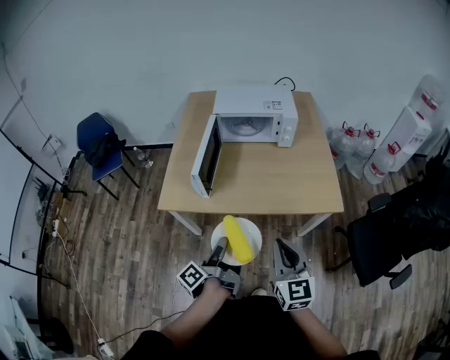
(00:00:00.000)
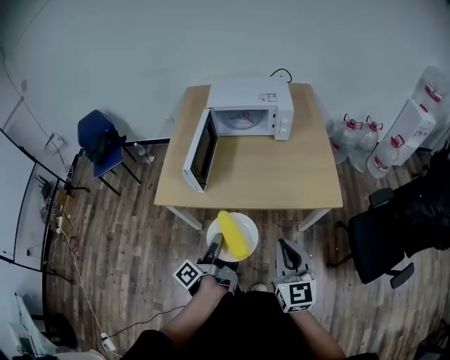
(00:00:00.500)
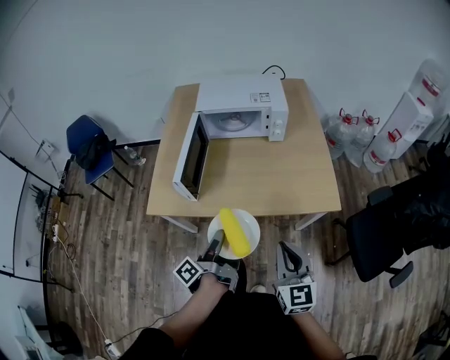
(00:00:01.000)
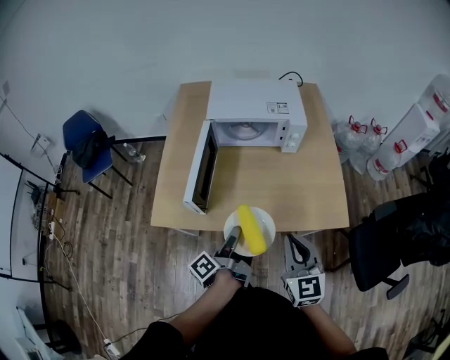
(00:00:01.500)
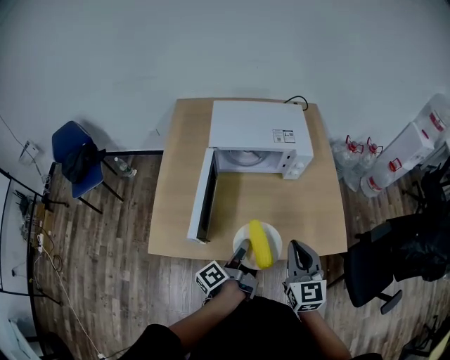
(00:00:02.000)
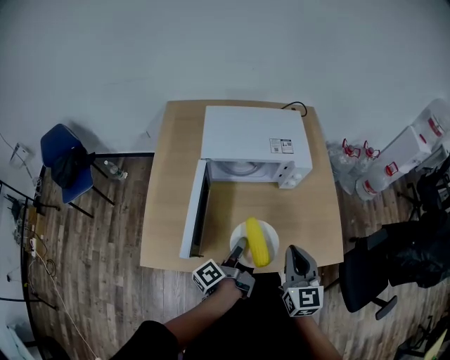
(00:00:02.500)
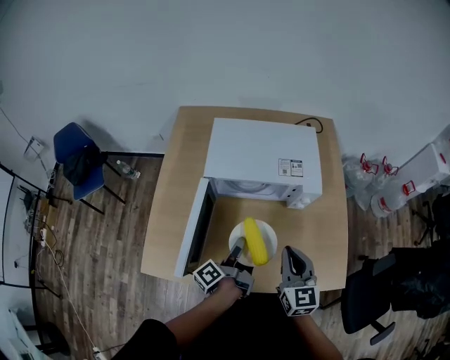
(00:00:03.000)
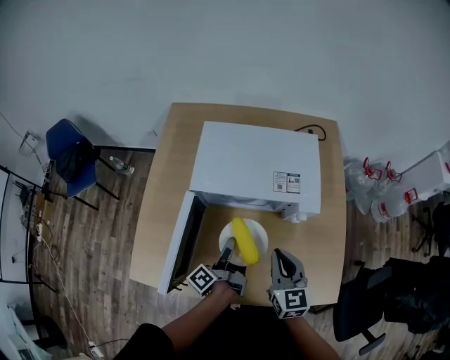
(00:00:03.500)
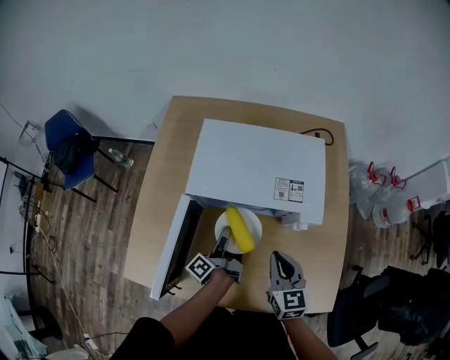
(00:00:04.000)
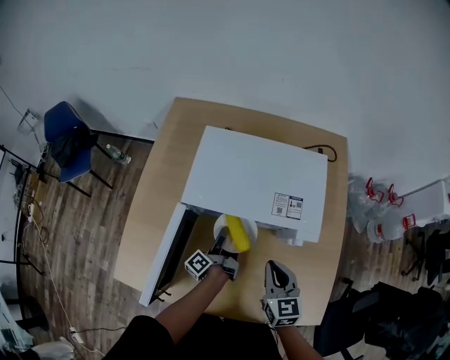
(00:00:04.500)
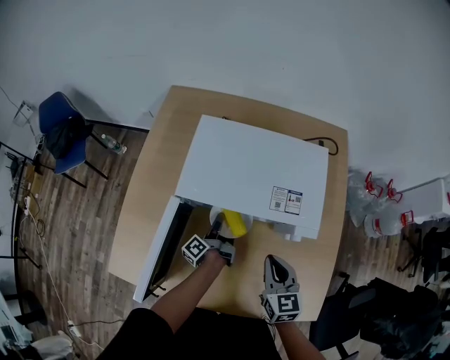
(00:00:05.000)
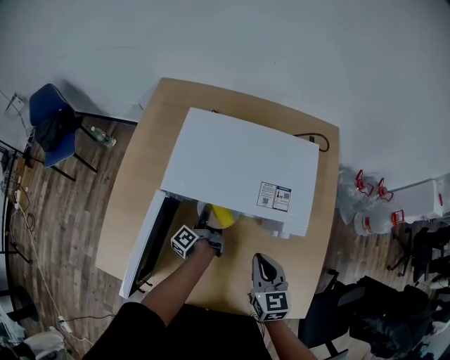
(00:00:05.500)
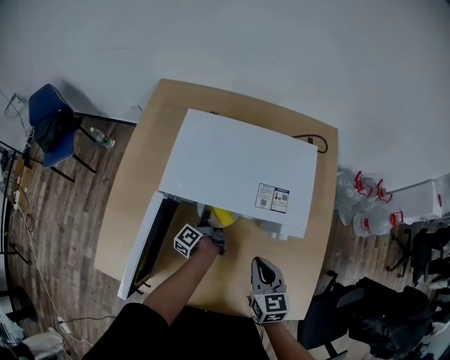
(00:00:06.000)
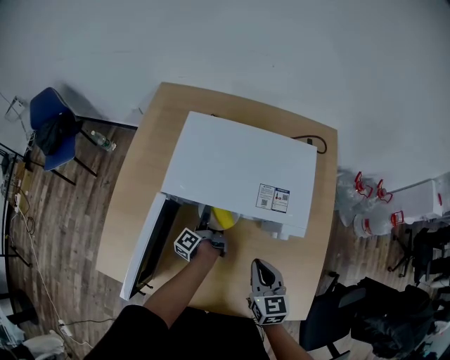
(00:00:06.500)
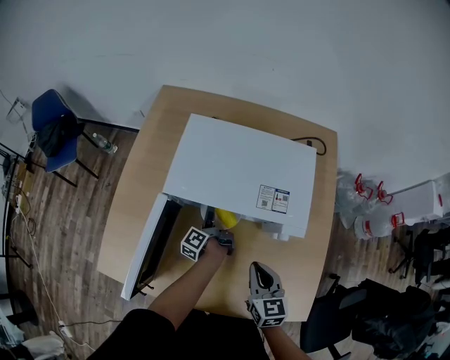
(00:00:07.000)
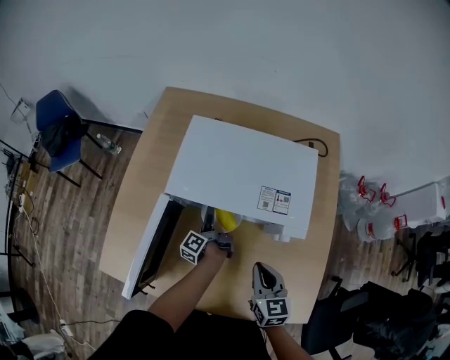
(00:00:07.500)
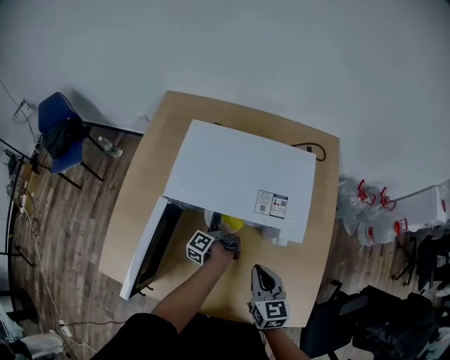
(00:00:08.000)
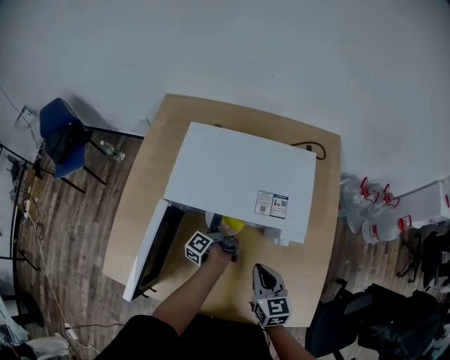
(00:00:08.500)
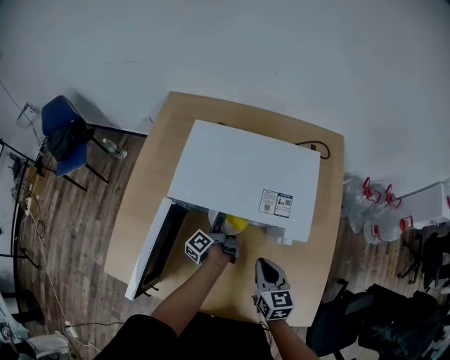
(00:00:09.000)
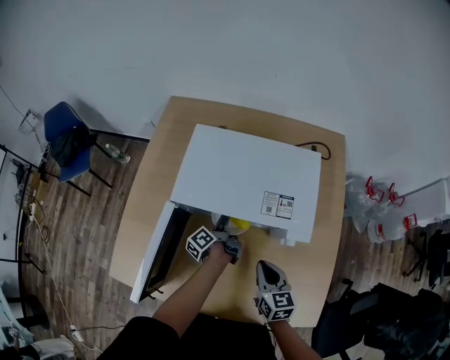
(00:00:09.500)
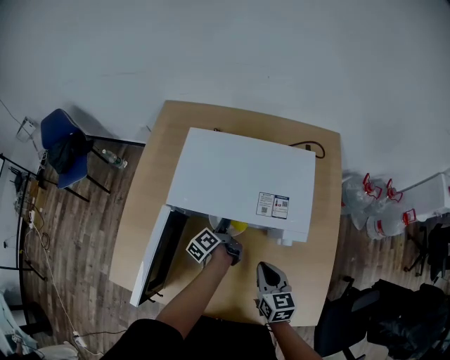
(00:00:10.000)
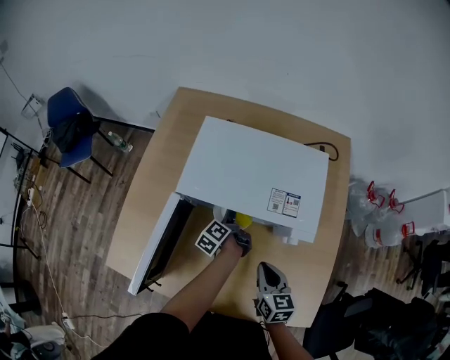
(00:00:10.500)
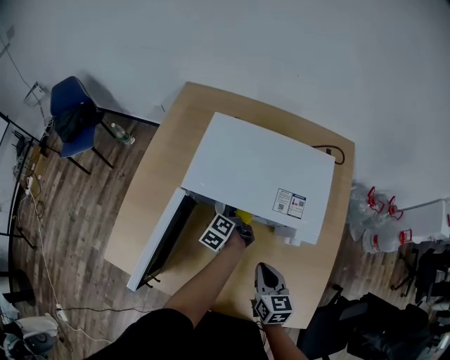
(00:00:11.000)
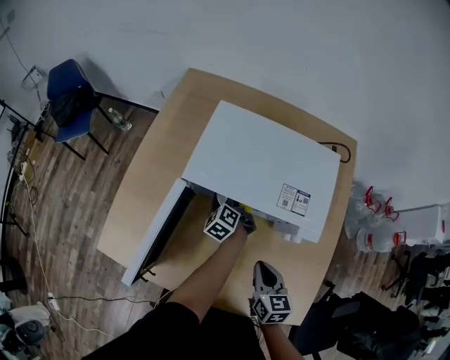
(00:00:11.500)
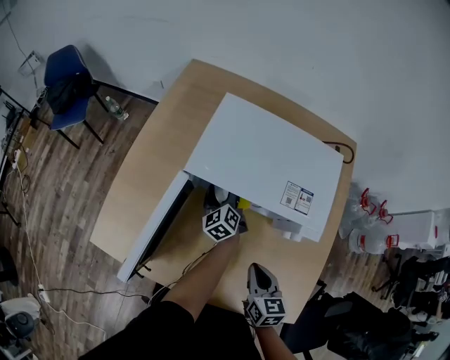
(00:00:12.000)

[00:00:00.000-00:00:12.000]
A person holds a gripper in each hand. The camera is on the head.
00:00:00.000 to 00:00:02.000: The right gripper ends up about 25 cm from where it was.
00:00:02.000 to 00:00:04.000: The right gripper ends up some 25 cm from where it was.
00:00:04.000 to 00:00:06.000: The right gripper shifts by roughly 5 cm.

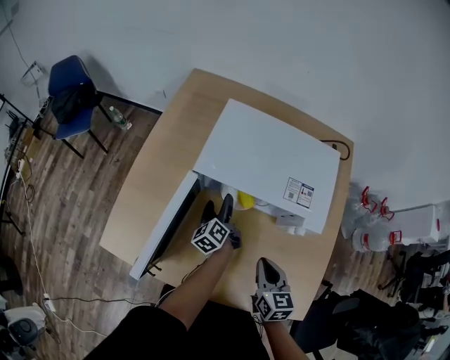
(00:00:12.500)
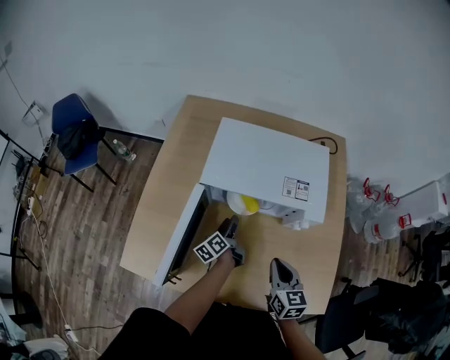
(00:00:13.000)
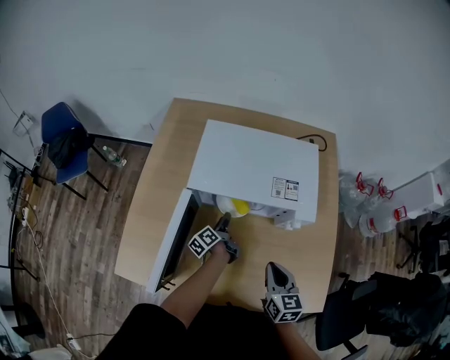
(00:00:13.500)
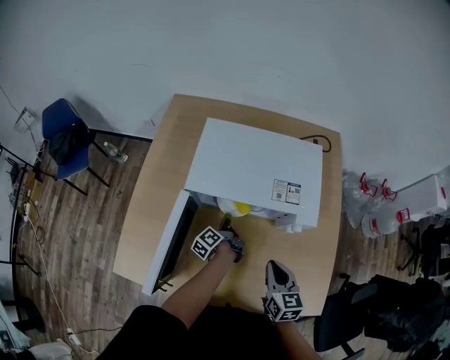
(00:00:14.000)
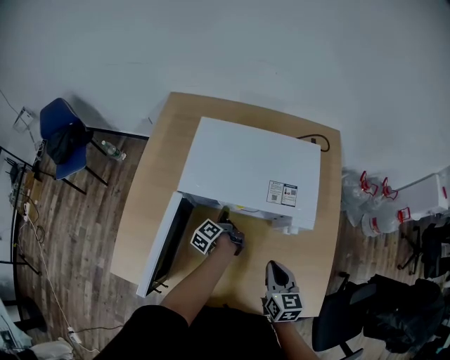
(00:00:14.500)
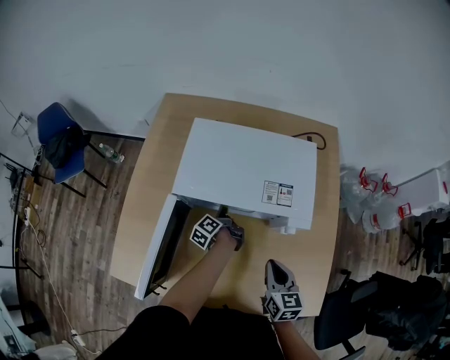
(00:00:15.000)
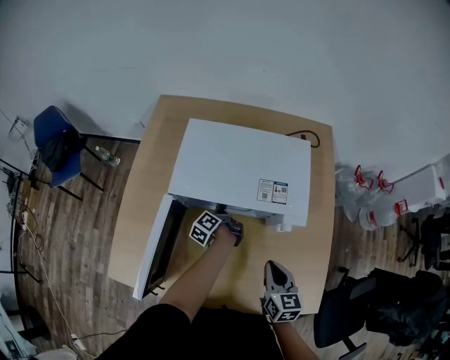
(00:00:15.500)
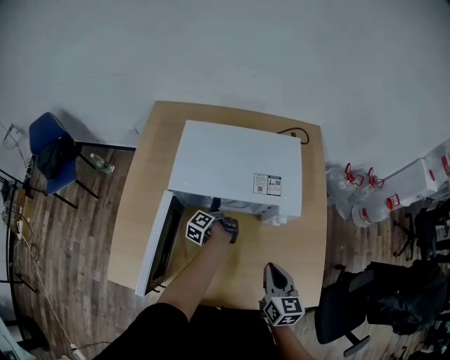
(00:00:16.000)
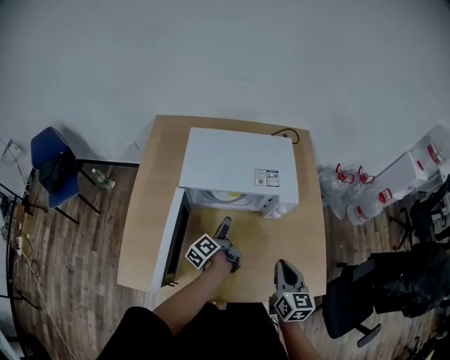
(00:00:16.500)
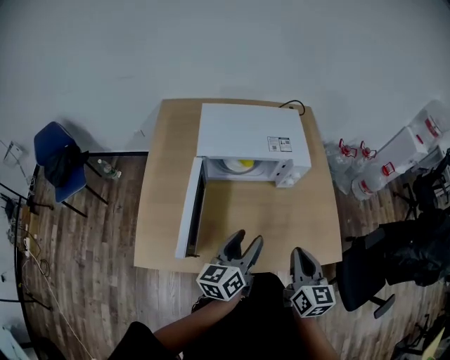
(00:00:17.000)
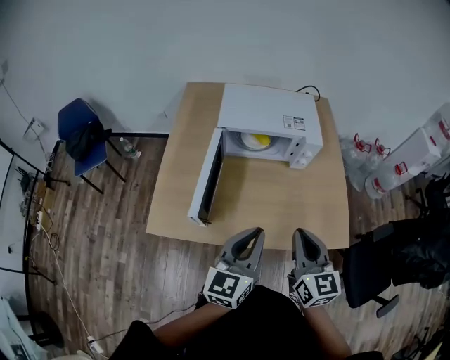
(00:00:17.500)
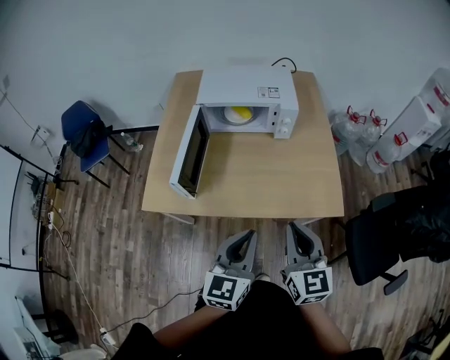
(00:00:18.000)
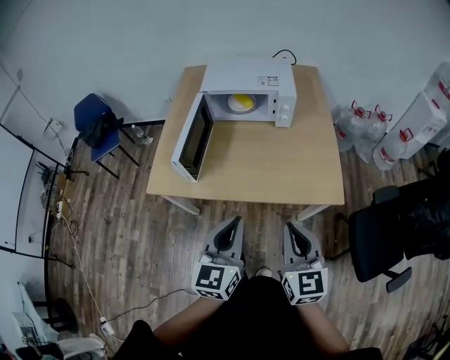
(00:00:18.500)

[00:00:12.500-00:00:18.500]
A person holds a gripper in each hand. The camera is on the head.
00:00:14.500 to 00:00:16.500: The right gripper ends up some 10 cm from where it was.
00:00:16.500 to 00:00:18.500: The right gripper moves about 35 cm.

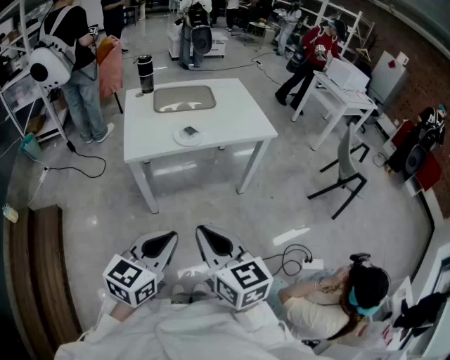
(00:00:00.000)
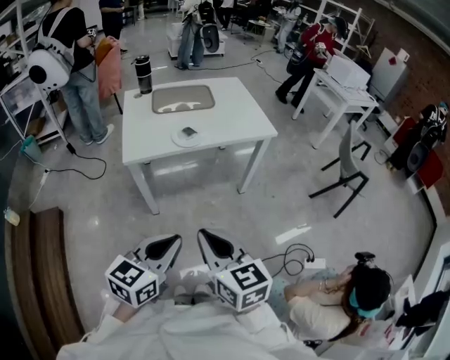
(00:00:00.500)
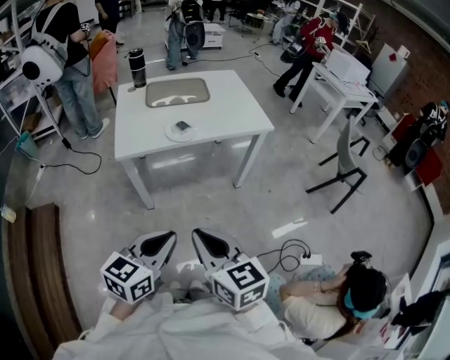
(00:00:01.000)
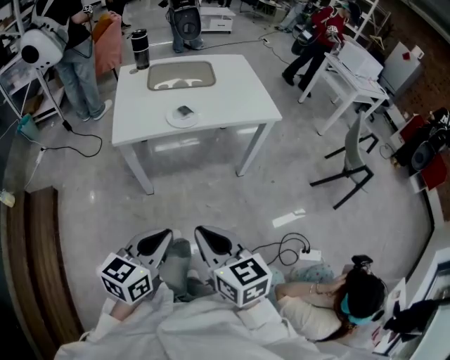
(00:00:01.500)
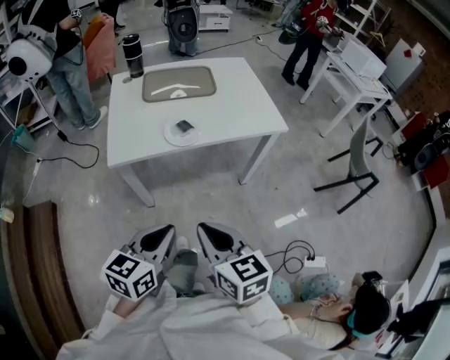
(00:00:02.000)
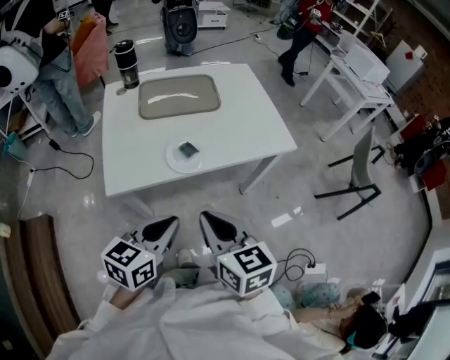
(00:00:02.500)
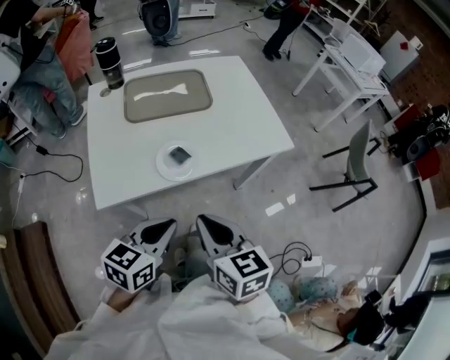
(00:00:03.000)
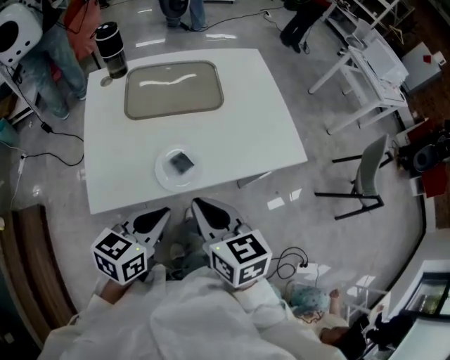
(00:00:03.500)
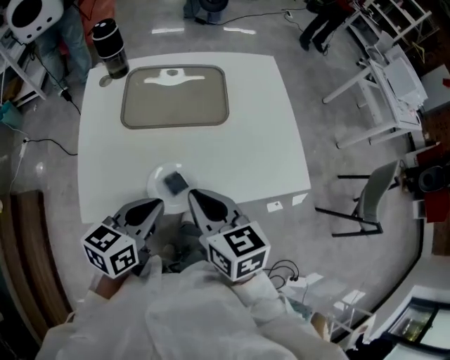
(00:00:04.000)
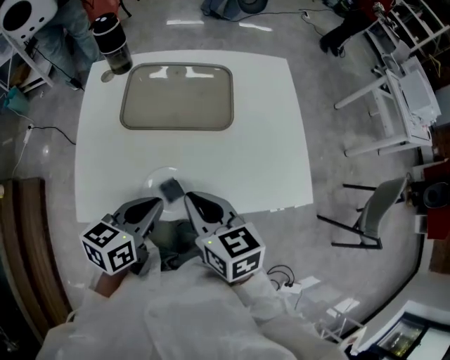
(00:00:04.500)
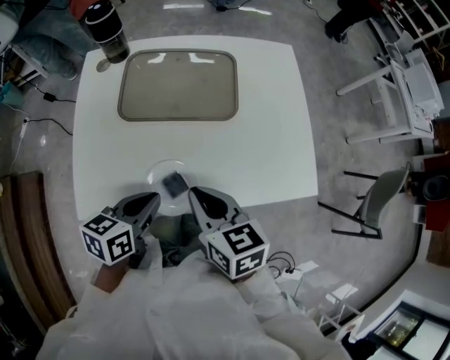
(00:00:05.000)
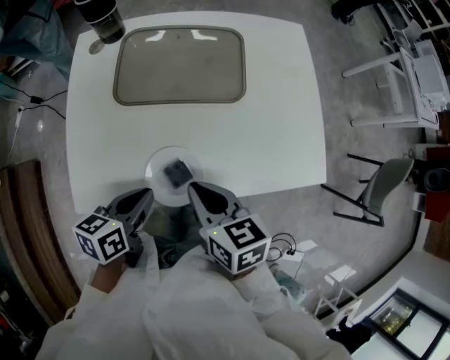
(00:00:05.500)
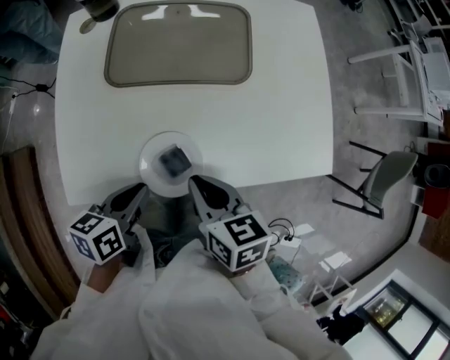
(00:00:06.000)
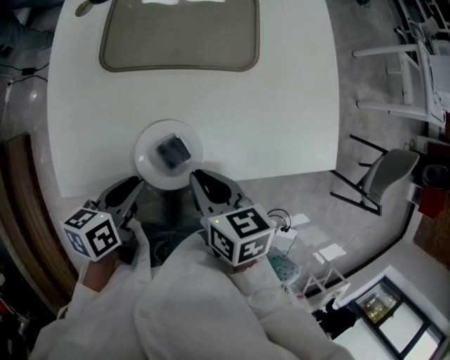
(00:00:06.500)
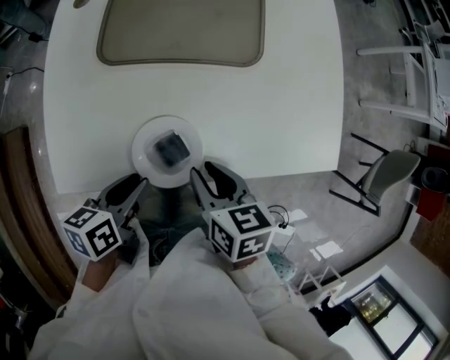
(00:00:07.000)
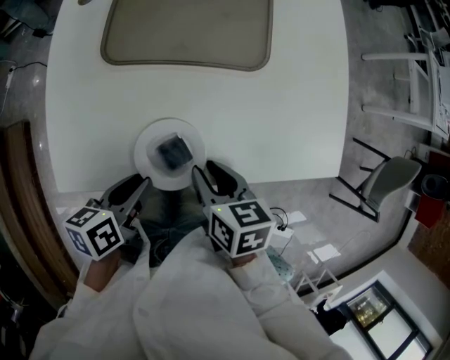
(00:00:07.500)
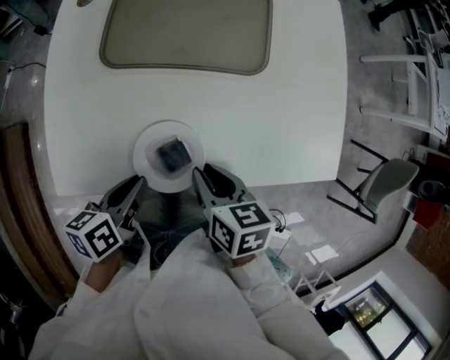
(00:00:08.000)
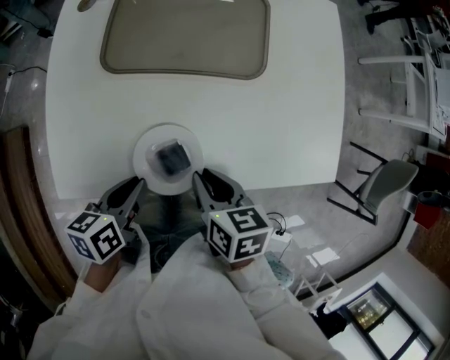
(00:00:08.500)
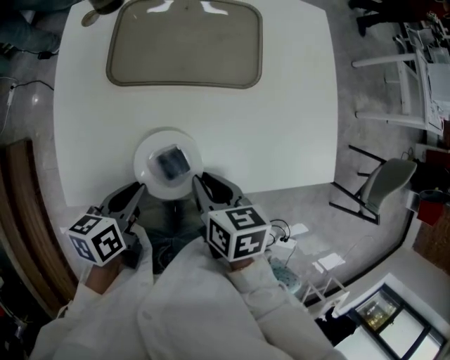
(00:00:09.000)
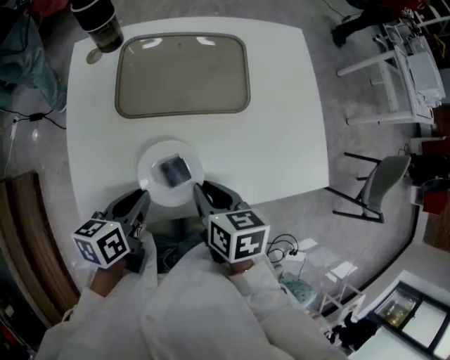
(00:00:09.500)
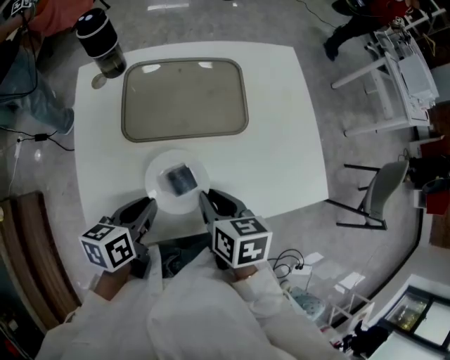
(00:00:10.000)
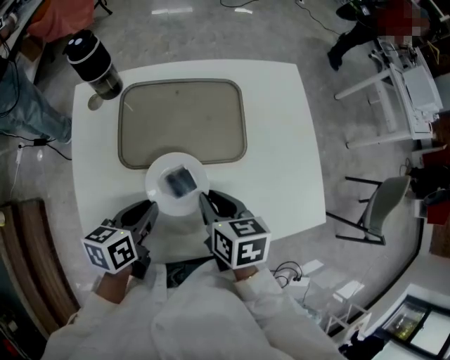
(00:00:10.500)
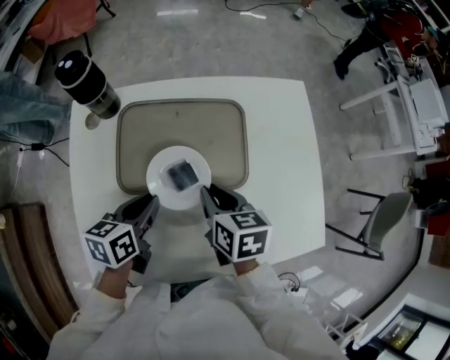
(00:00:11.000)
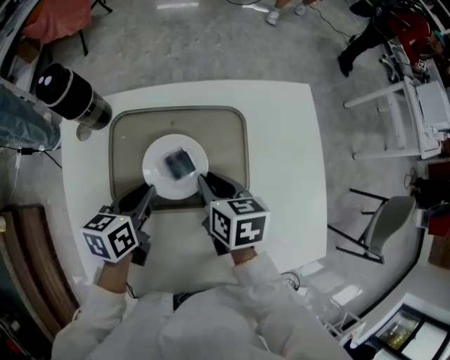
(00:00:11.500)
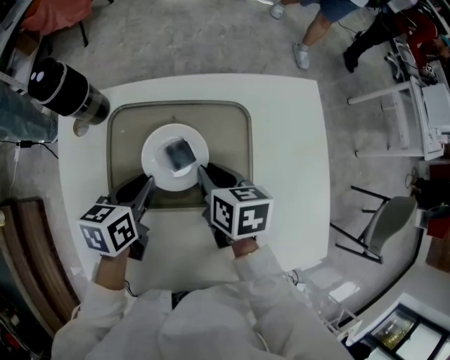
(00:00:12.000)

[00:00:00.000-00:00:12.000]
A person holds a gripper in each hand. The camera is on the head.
00:00:00.000 to 00:00:02.000: Both grippers travel together forward and downward, approximately 15 cm.
00:00:02.000 to 00:00:04.000: The grippers both shift forward by about 35 cm.
00:00:04.000 to 00:00:06.000: The two grippers go approximately 10 cm downward. The left gripper swivels about 30 degrees.
00:00:06.000 to 00:00:08.000: The right gripper goes roughly 5 cm downward.
00:00:08.000 to 00:00:10.000: The right gripper heads upward and forward, covering some 5 cm. Meanwhile the left gripper is displaced forward and upward by approximately 10 cm.
00:00:10.000 to 00:00:12.000: Both grippers move forward, approximately 25 cm.
